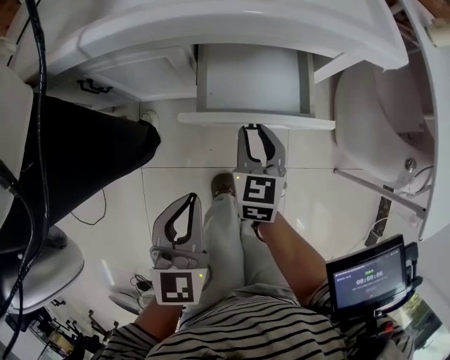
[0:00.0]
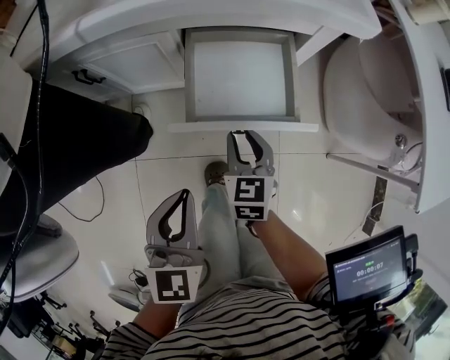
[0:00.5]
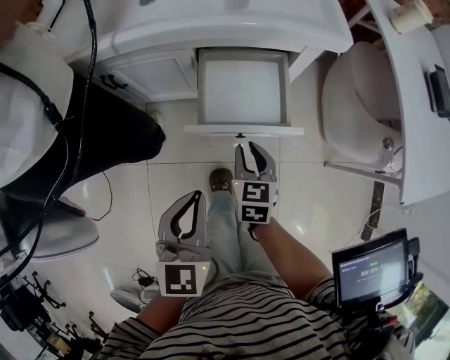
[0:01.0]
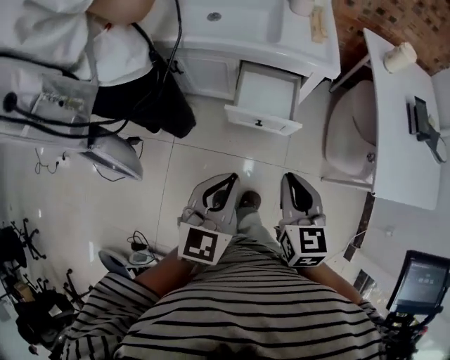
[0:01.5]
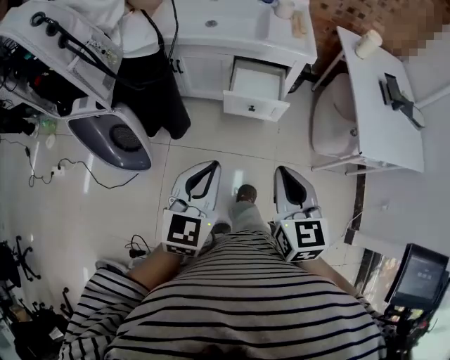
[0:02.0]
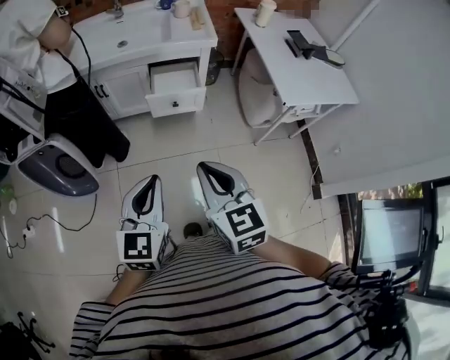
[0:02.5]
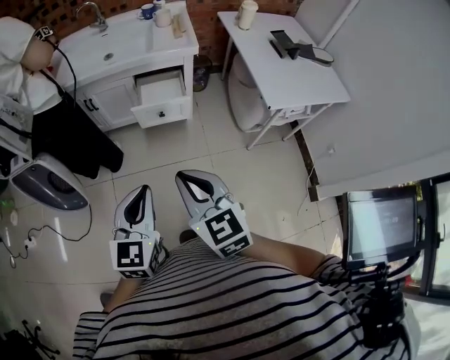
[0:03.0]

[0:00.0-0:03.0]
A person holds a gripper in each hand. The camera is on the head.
0:00.0 to 0:01.5: Both grippers travel together upward and backward, some 35 cm. The right gripper closes.
0:01.5 to 0:03.0: The left gripper goes roughly 20 cm backward, while the right gripper goes approximately 25 cm backward and upward.

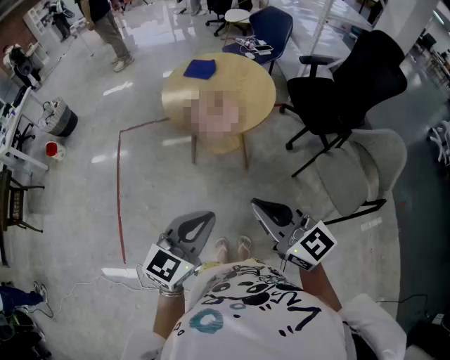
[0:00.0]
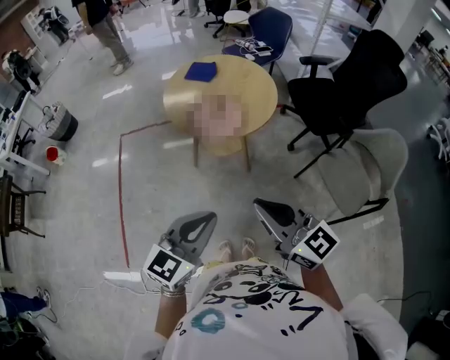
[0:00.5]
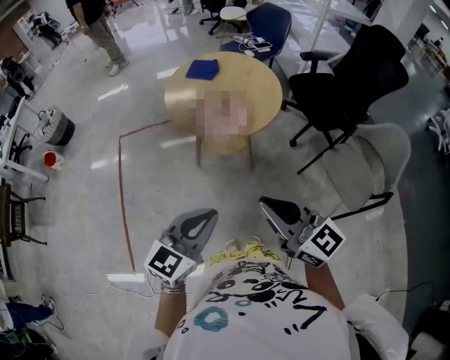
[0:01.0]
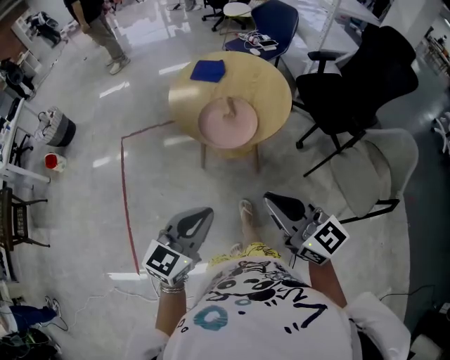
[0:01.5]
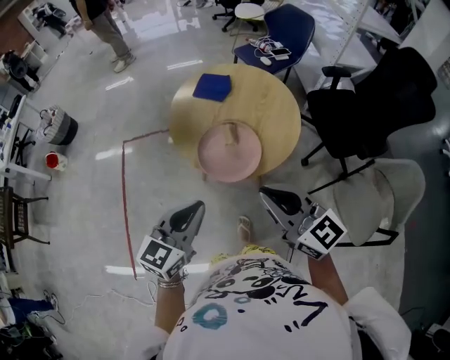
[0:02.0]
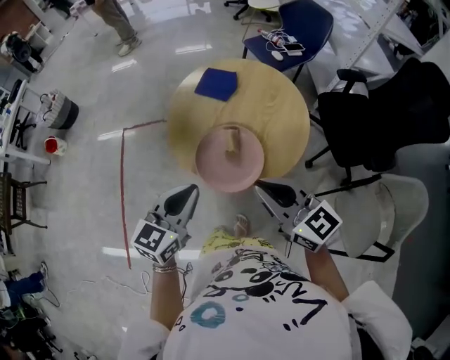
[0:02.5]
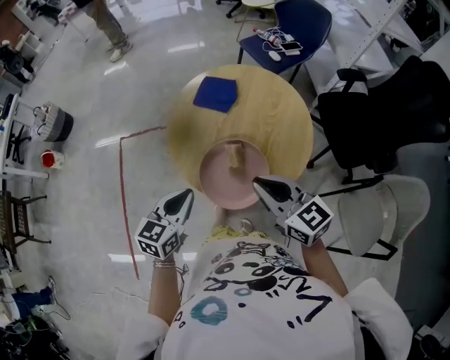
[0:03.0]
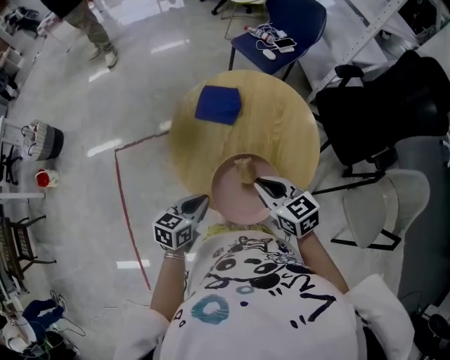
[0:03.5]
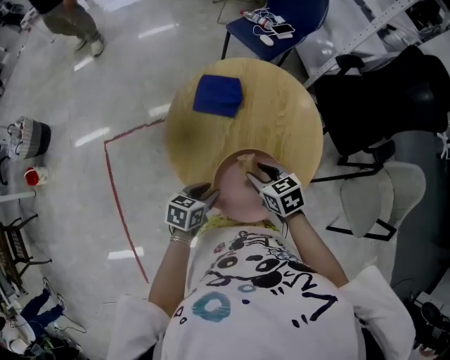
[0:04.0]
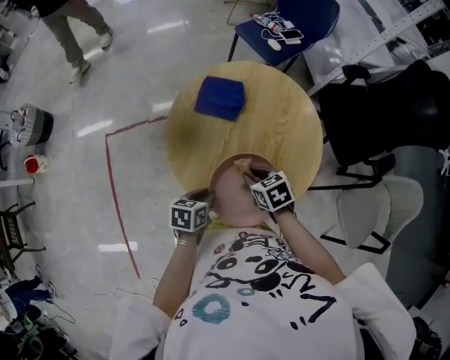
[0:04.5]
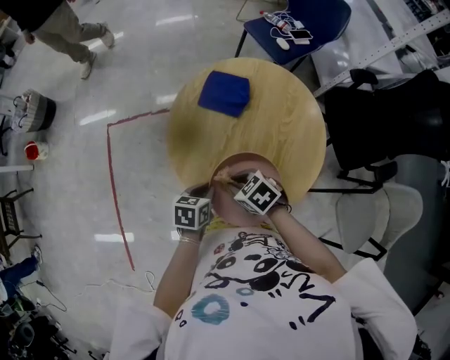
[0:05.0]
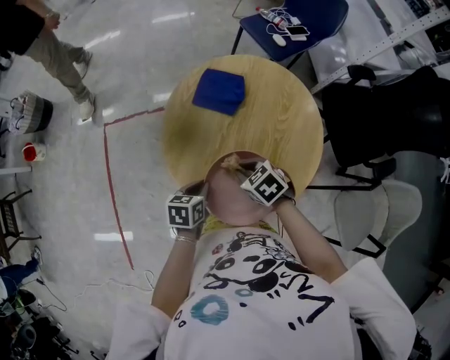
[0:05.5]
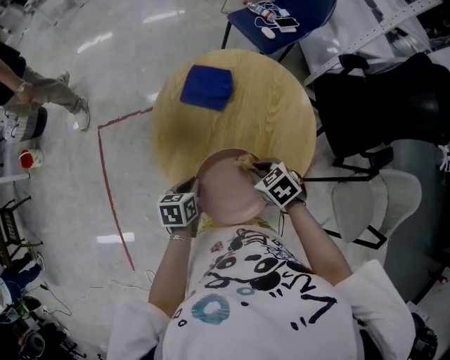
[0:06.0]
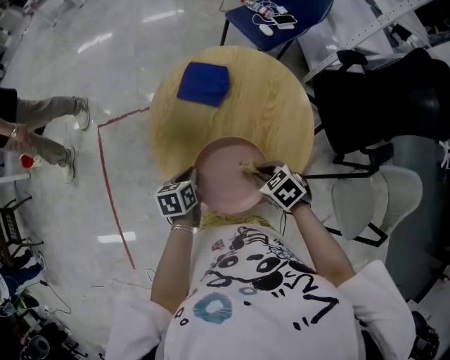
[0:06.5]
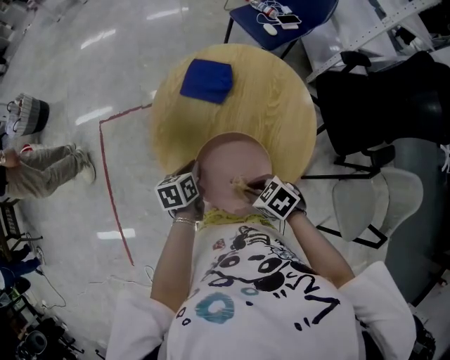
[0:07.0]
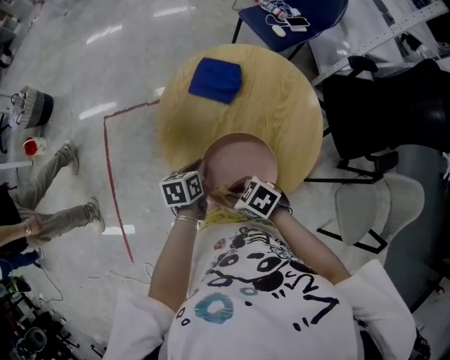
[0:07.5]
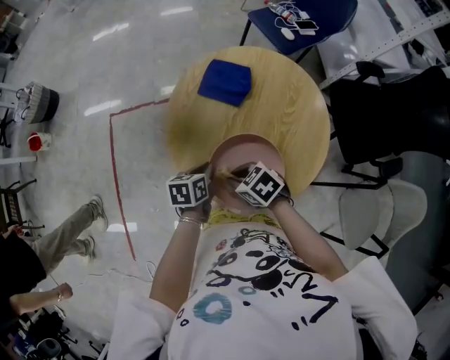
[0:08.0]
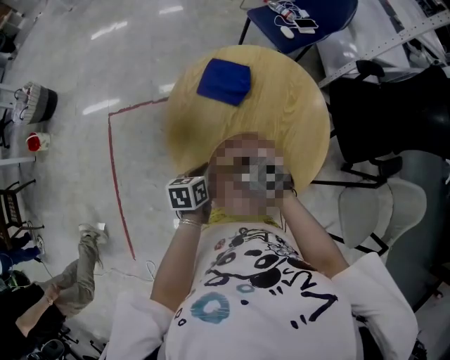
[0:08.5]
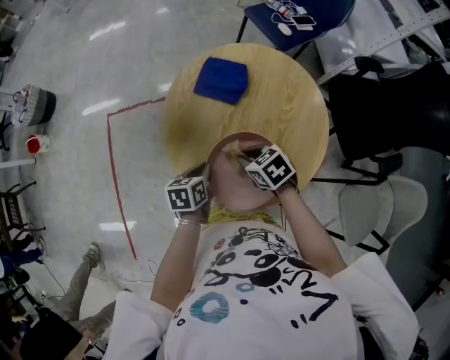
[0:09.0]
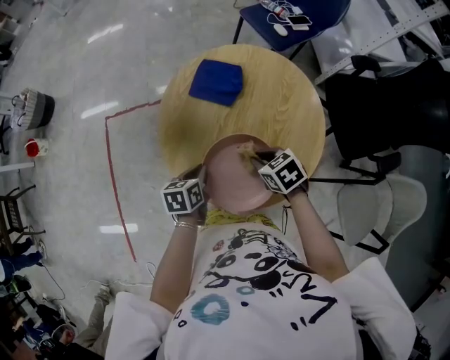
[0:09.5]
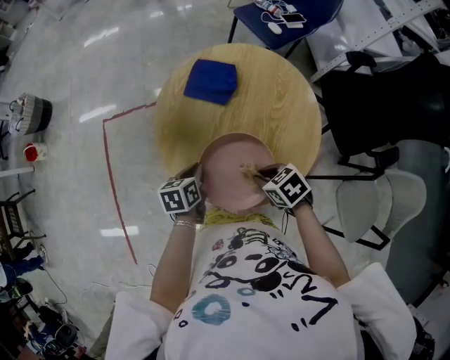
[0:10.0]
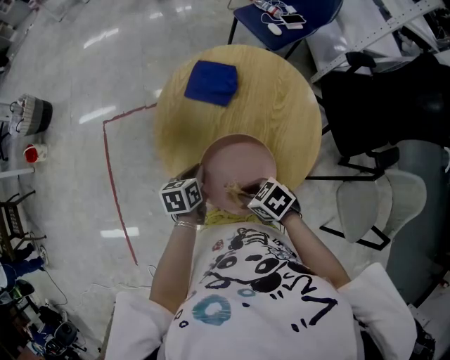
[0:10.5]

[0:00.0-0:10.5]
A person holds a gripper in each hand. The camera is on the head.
0:00.0 to 0:02.0: Both grippers move forward, about 25 cm.
0:02.0 to 0:04.0: The left gripper travels downward and forward by approximately 35 cm, turns by roughly 40 degrees, and opens up. The right gripper moves forward and downward, some 35 cm, tilts its fingers roughly 40 degrees downward, and opens up.
0:04.0 to 0:06.5: The right gripper shifts by approximately 10 cm, changes its angle by approximately 30 degrees, and closes; the left gripper changes its angle by about 30 degrees, and closes up.
0:06.5 to 0:08.5: The right gripper changes place by about 10 cm.
0:08.5 to 0:10.5: The right gripper changes place by about 10 cm.

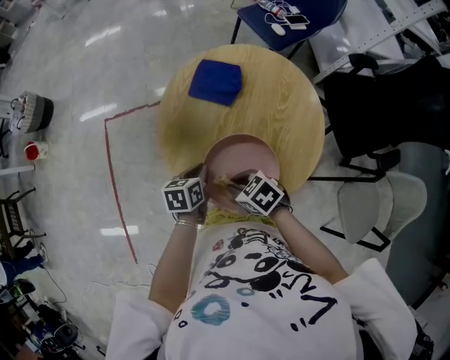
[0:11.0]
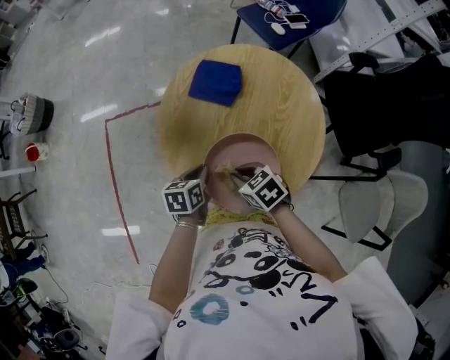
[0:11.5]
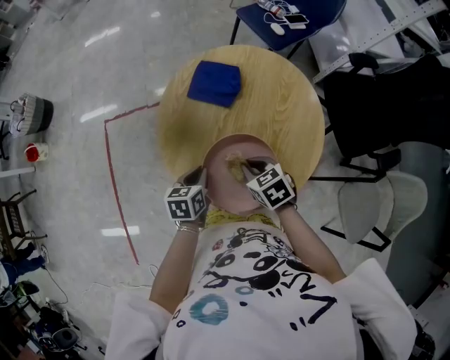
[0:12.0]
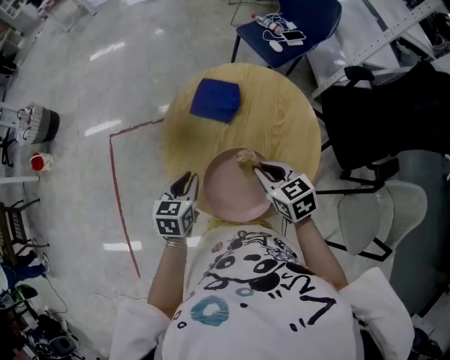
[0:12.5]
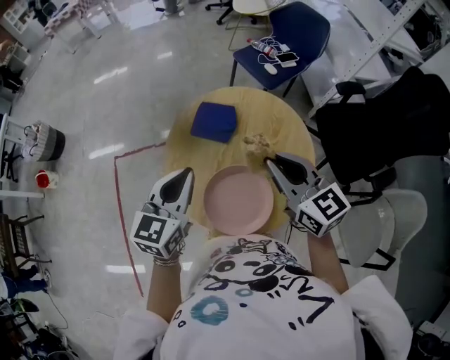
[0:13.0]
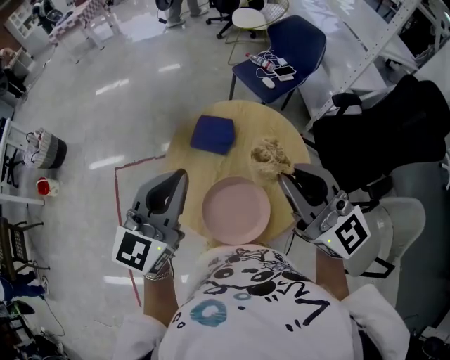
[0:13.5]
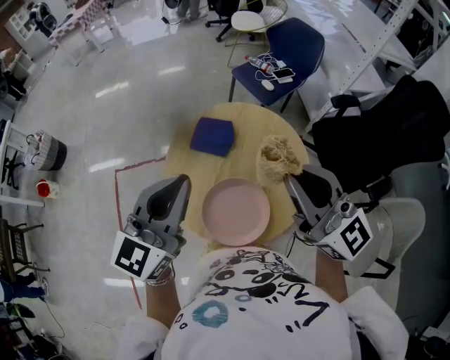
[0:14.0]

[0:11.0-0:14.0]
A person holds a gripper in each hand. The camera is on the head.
0:11.0 to 0:12.5: The left gripper goes roughly 10 cm upward, and turns by roughly 20 degrees, while the right gripper travels to the right, upward and forward by roughly 15 cm, and swivels approximately 30 degrees.
0:12.5 to 0:14.0: Both grippers move upward, roughly 30 cm. The right gripper tips its fingers upward by approximately 50 degrees. The left gripper points its fingers roughly 40 degrees further upward.

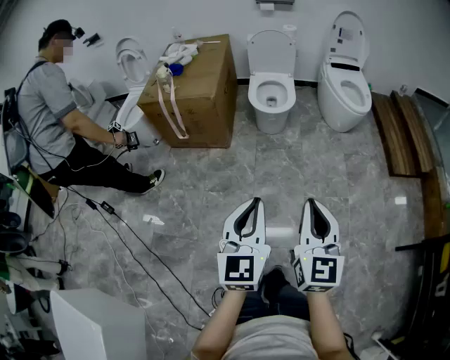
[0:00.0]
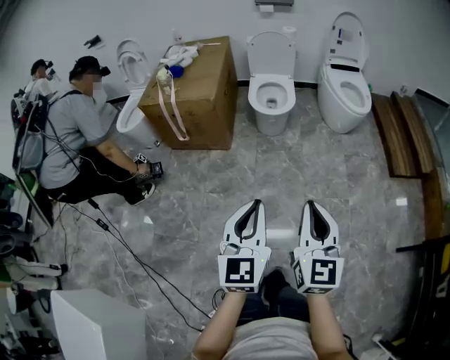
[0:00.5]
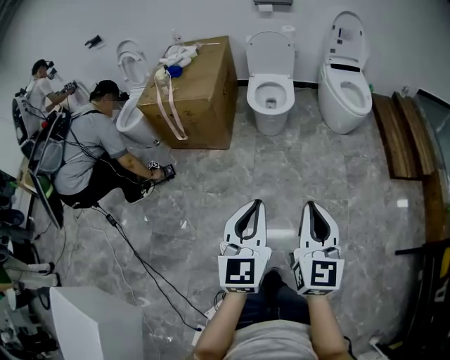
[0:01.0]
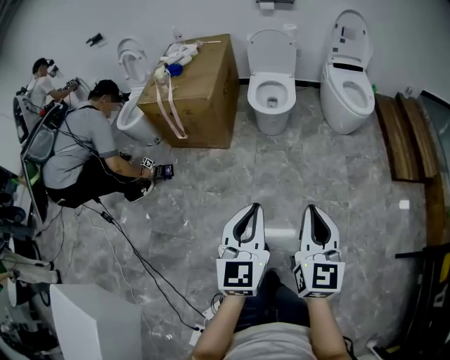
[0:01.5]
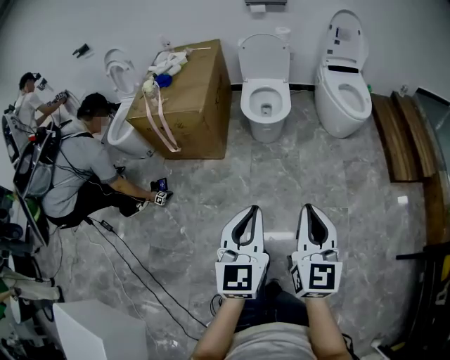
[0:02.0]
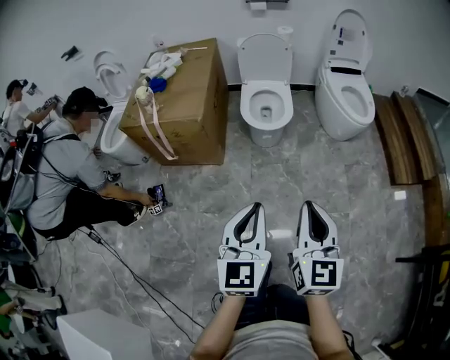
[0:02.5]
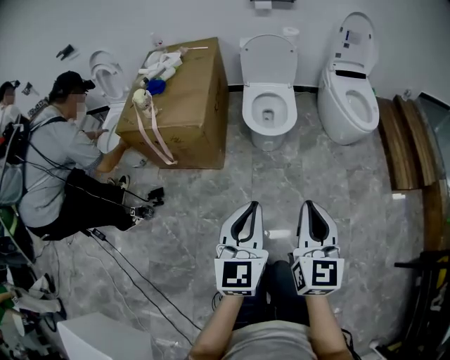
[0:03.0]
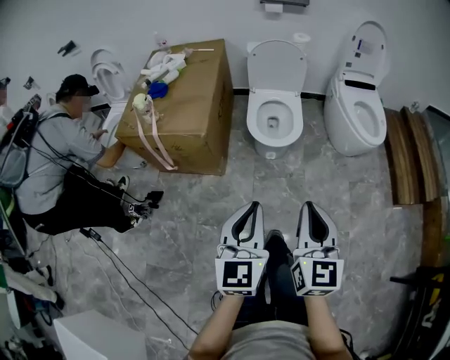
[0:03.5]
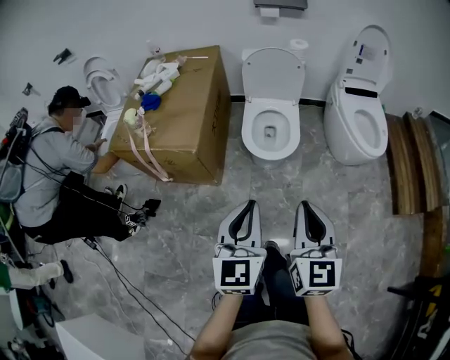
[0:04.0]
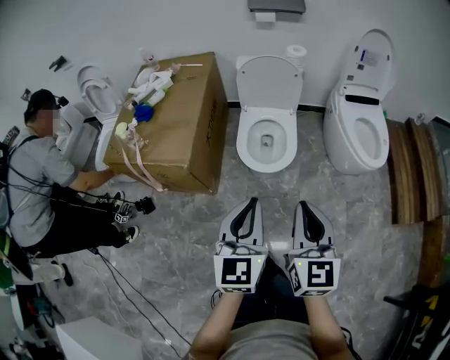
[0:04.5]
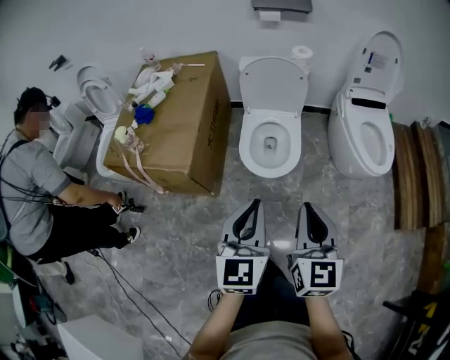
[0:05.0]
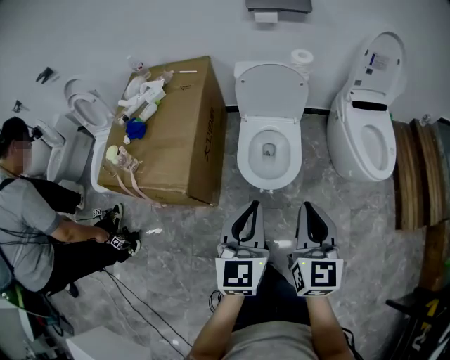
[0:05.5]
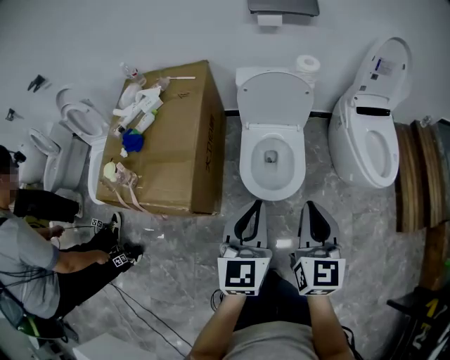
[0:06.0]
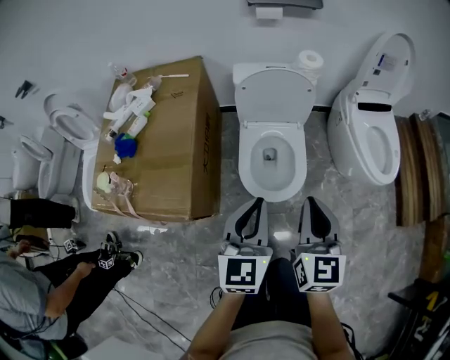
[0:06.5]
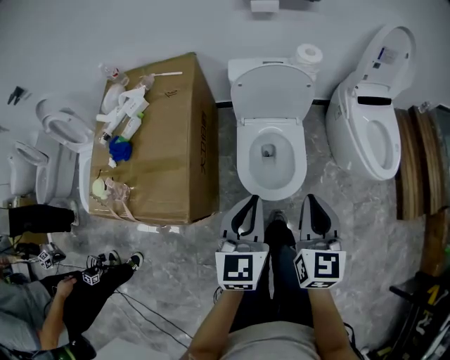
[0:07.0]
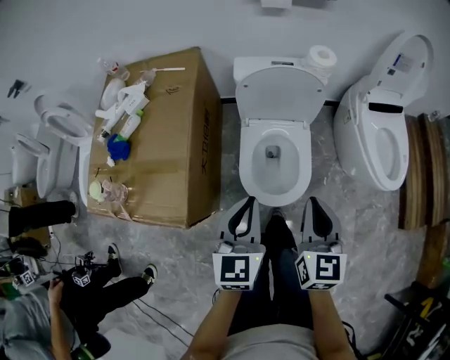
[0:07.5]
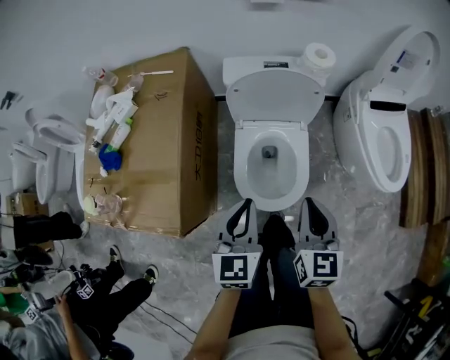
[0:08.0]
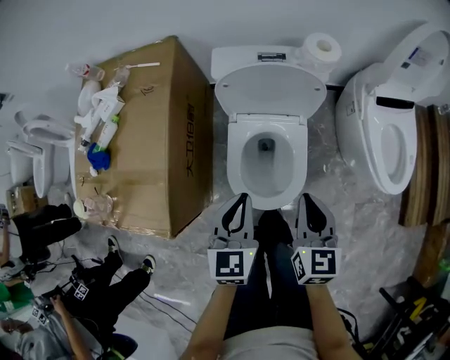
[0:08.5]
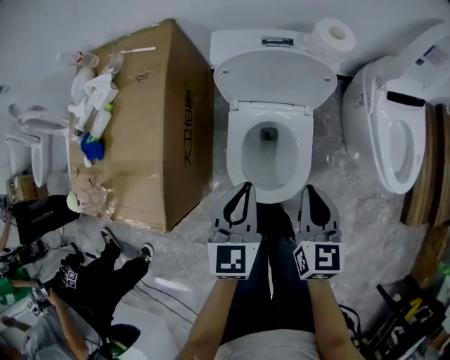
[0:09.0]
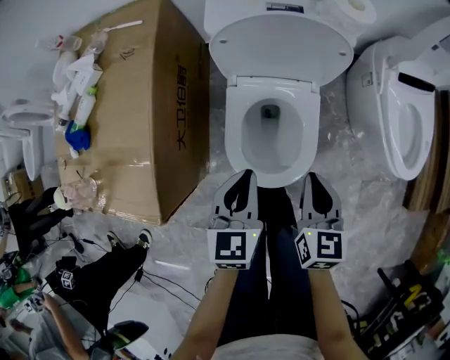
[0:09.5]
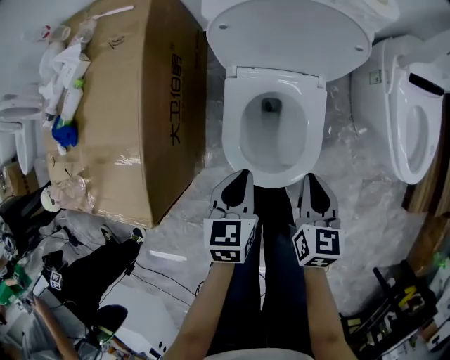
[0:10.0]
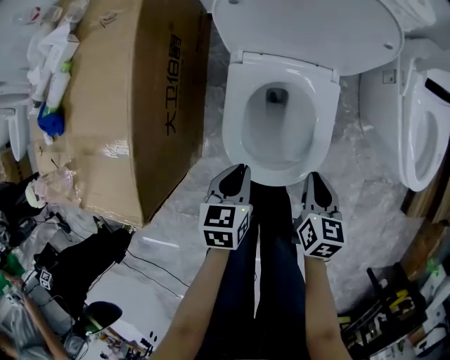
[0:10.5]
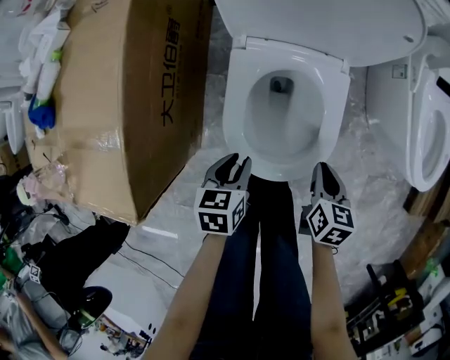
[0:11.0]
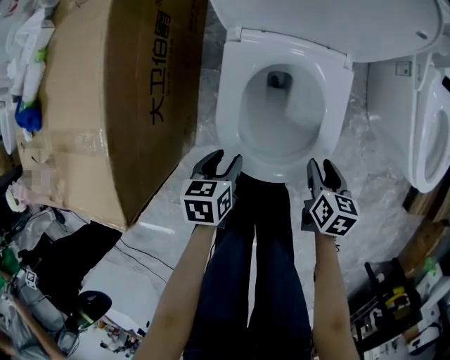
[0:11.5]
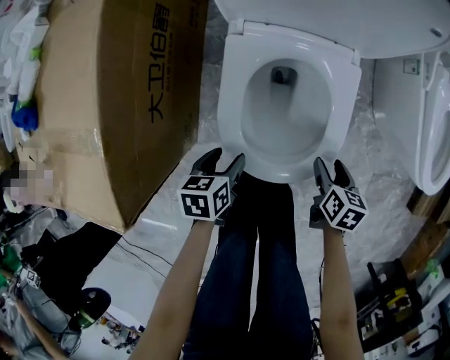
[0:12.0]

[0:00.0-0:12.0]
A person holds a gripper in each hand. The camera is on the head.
0:00.0 to 0:02.0: Both grippers move forward, about 10 cm.
0:02.0 to 0:04.0: Both grippers move forward, some 30 cm.
0:04.0 to 0:06.0: Both grippers move forward, roughly 30 cm.
0:06.0 to 0:08.0: Both grippers move forward and downward, some 20 cm.
0:08.0 to 0:10.0: Both grippers travel together downward, roughly 20 cm. The left gripper swivels roughly 30 degrees.
0:10.0 to 0:12.0: Both grippers move downward, approximately 25 cm. The left gripper turns by roughly 30 degrees, and opens, while the right gripper rotates approximately 20 degrees, and opens its fingers.
